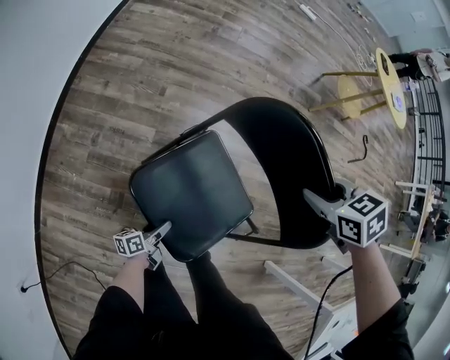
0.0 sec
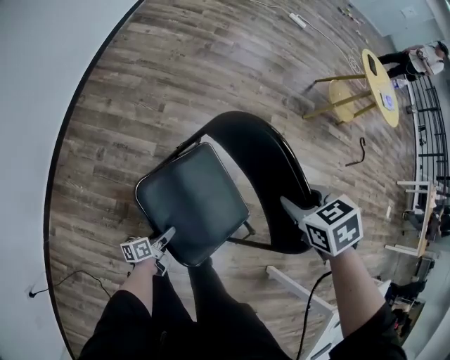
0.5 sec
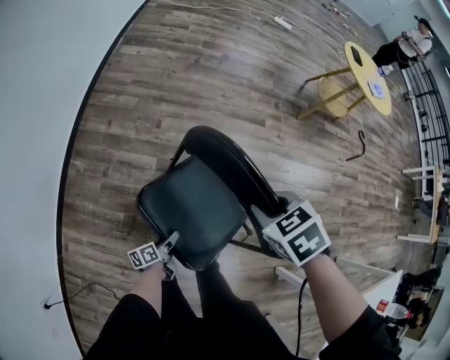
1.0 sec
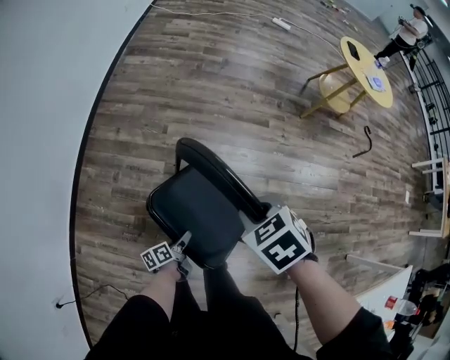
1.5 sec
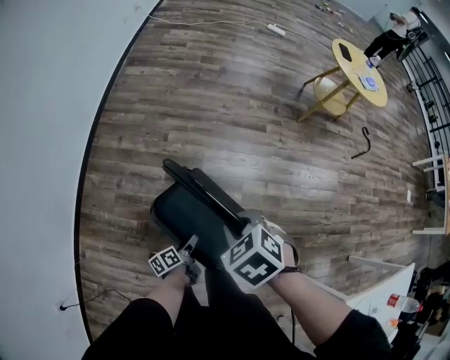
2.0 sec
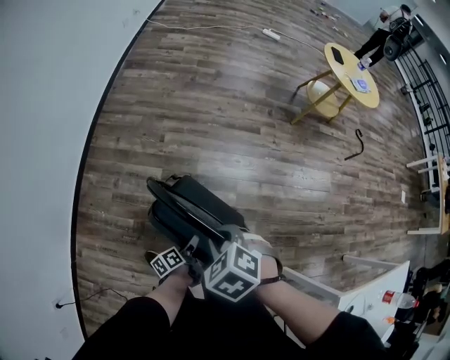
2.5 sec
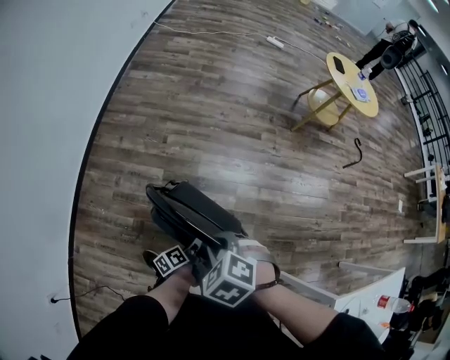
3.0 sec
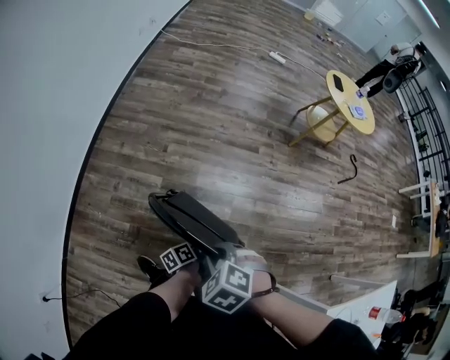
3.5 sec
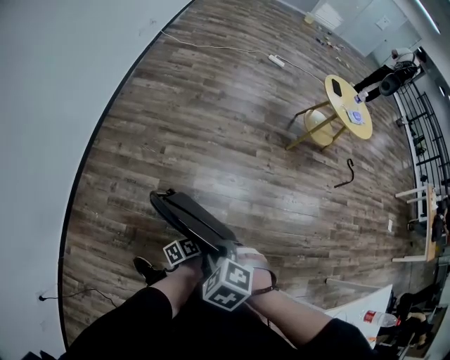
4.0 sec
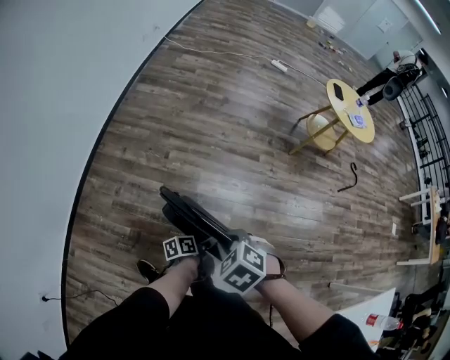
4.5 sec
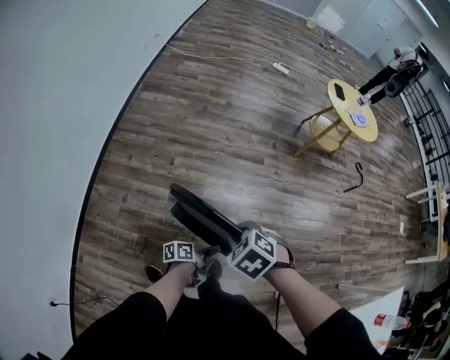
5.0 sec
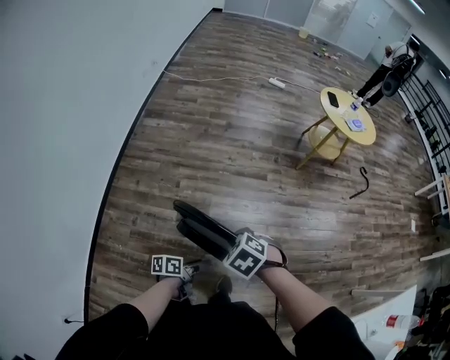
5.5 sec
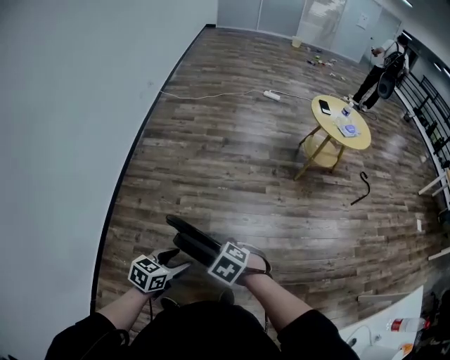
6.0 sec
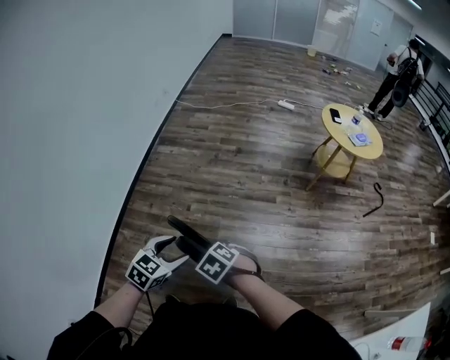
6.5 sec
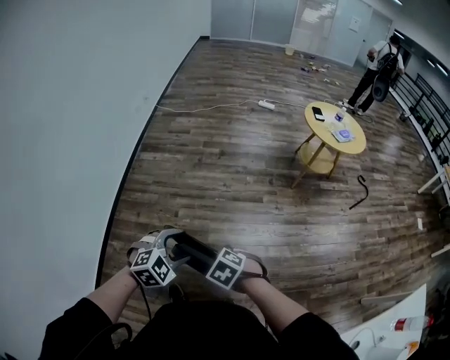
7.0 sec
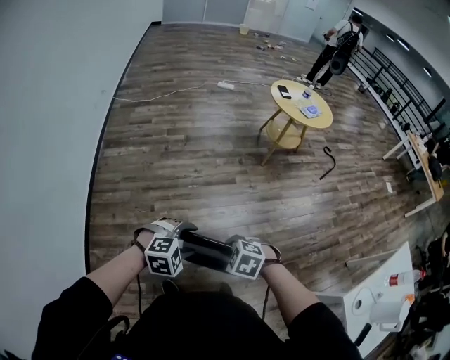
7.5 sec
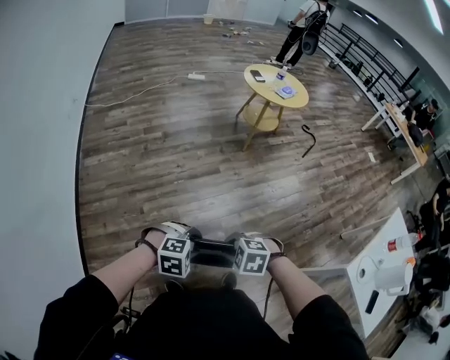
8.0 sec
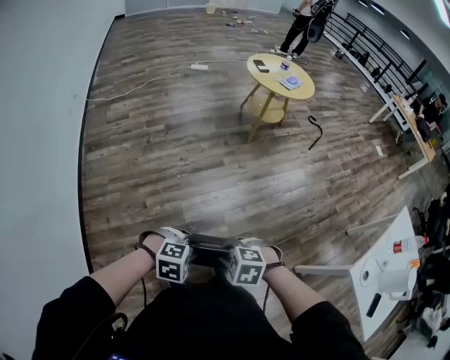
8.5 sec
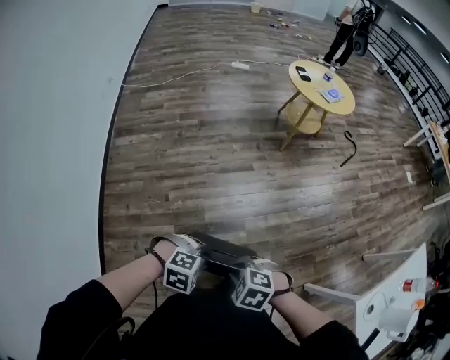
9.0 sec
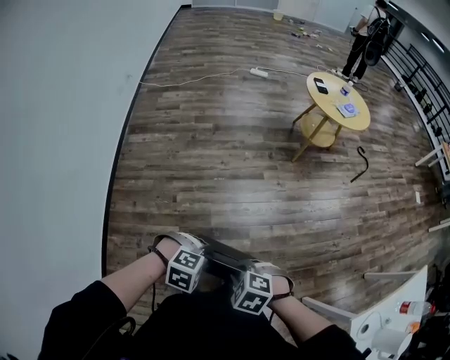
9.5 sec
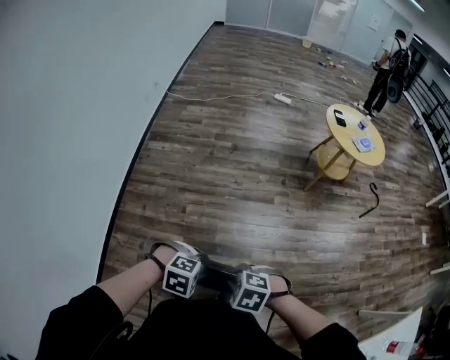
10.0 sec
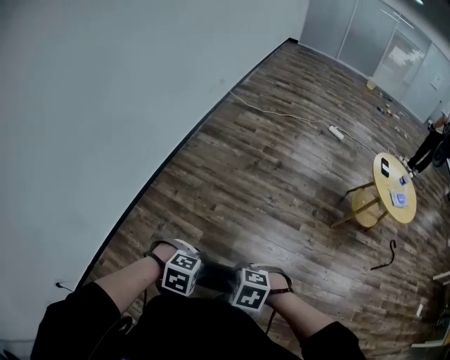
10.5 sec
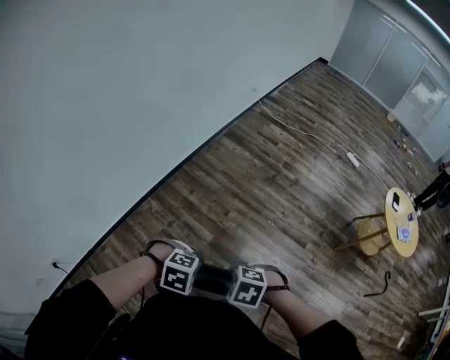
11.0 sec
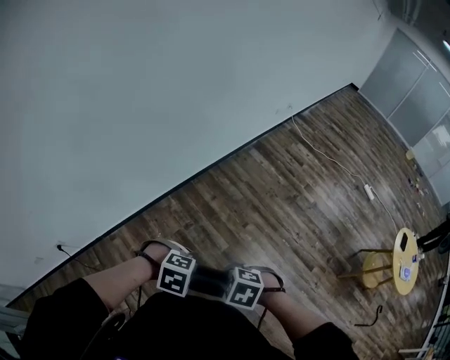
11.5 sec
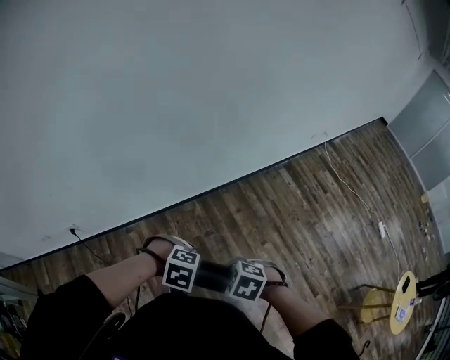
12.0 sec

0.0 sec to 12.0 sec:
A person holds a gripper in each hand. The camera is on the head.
0.0 sec to 2.0 sec: The left gripper moves upward and to the right, about 15 cm. The right gripper shifts approximately 20 cm backward, to the left and upward.
2.0 sec to 4.0 sec: The left gripper heads to the right and upward, covering some 15 cm. The right gripper heads backward, covering some 10 cm.
4.0 sec to 6.0 sec: The left gripper goes about 20 cm upward and to the left, rolls clockwise, seen from behind, by approximately 70 degrees, and opens; the right gripper goes roughly 10 cm forward.
6.0 sec to 8.0 sec: The left gripper rotates around the line of its fingers by about 80 degrees, clockwise from behind.
8.0 sec to 10.0 sec: There are only small adjustments of the grippers.
10.0 sec to 12.0 sec: The two grippers travel together, approximately 40 cm. The left gripper rotates around the line of its fingers by some 50 degrees, counterclockwise from behind, while the right gripper twists about 50 degrees counterclockwise, seen from behind.

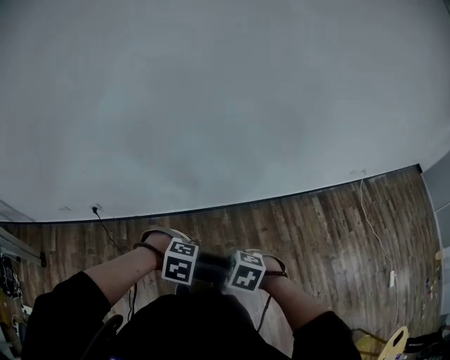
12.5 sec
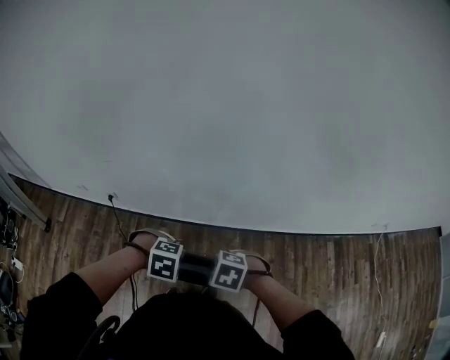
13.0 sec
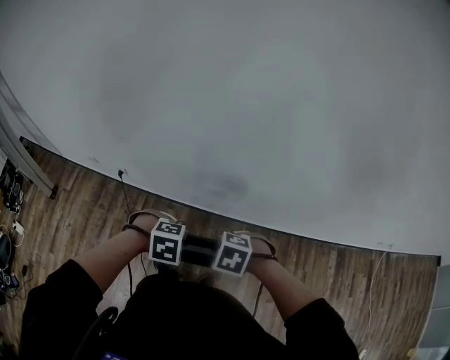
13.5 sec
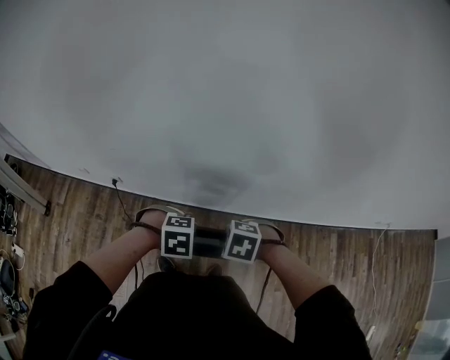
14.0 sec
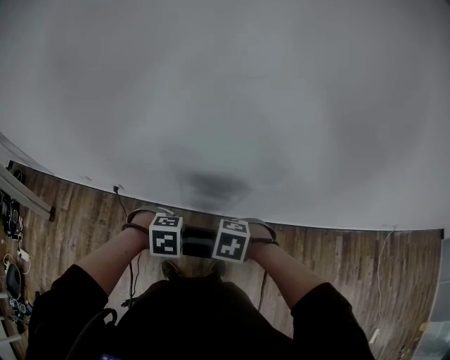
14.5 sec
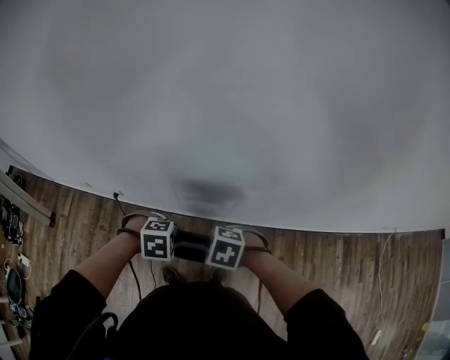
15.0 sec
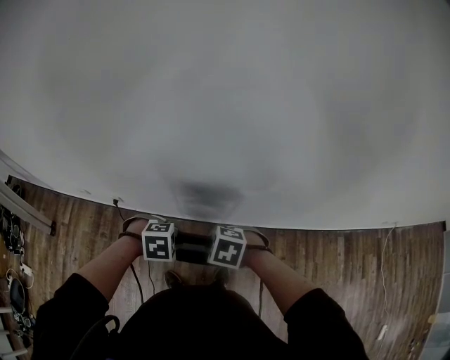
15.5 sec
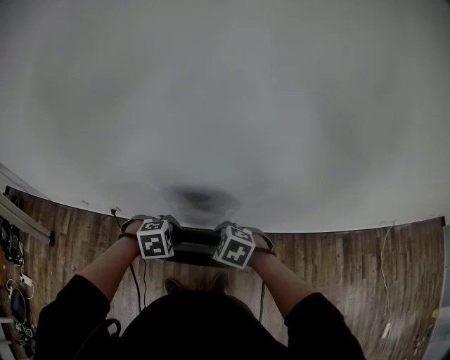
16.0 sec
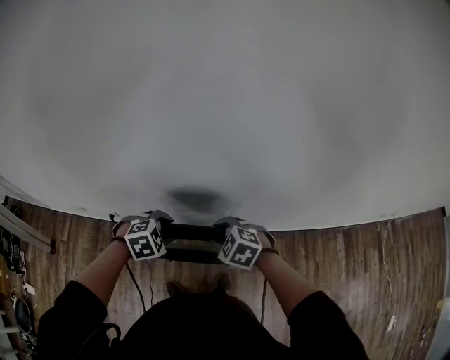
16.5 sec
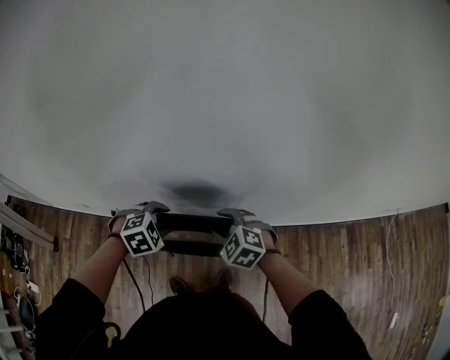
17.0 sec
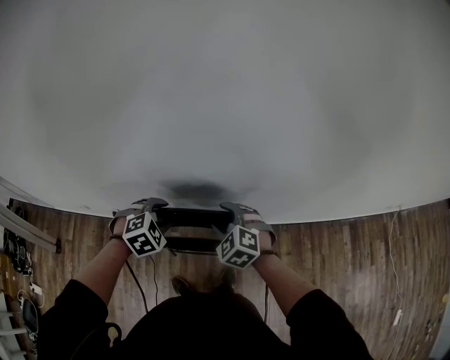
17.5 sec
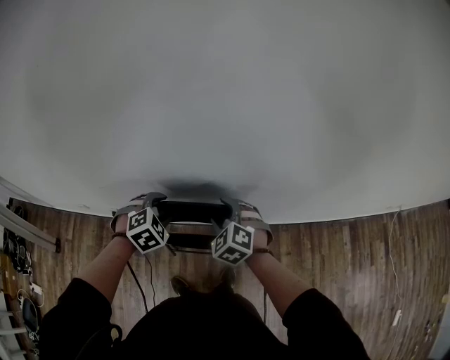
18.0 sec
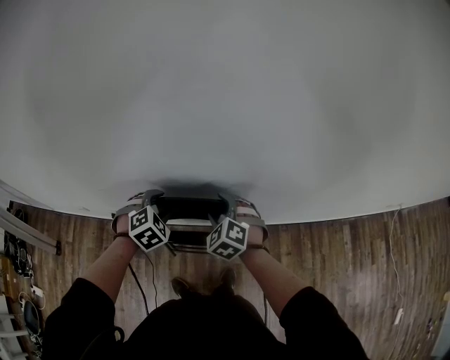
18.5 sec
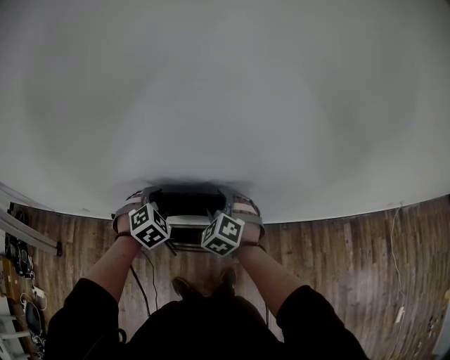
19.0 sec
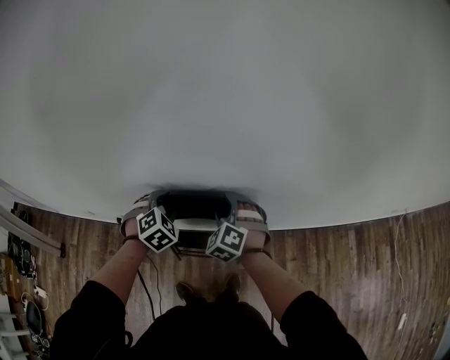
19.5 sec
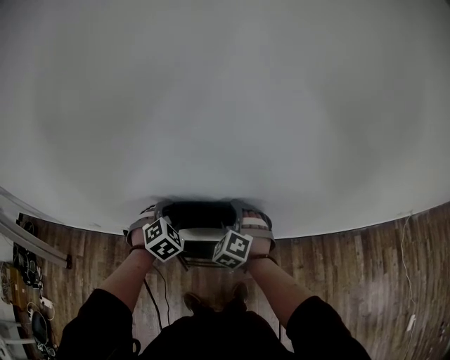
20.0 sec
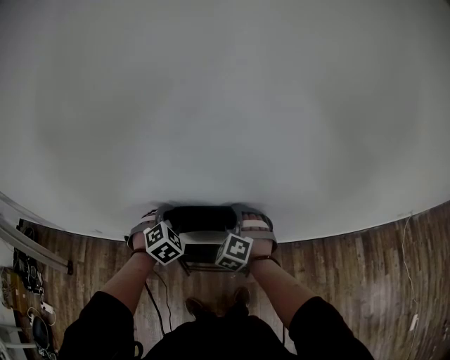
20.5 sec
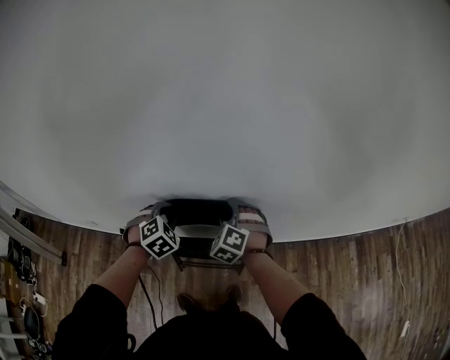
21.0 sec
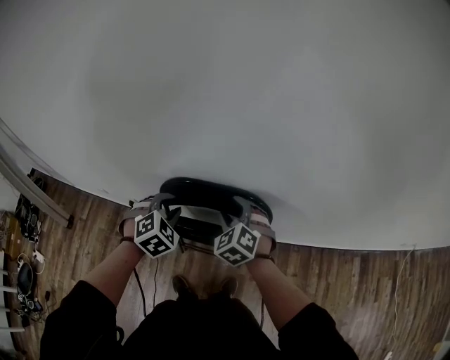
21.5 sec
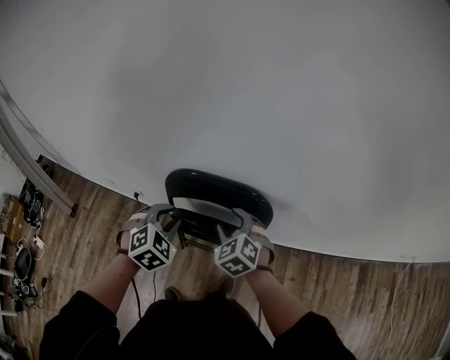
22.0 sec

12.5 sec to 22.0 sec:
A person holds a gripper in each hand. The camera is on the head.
12.5 sec to 14.5 sec: The left gripper changes place by roughly 20 cm, and swivels approximately 30 degrees, while the right gripper moves about 25 cm, and rotates about 30 degrees.
14.5 sec to 16.5 sec: The left gripper shifts by some 10 cm. Meanwhile the right gripper changes place by approximately 5 cm, and changes its angle by roughly 20 degrees.
16.5 sec to 18.0 sec: The two grippers go roughly 5 cm forward. The right gripper rotates approximately 30 degrees.
18.0 sec to 20.0 sec: The two grippers go about 5 cm forward.
20.0 sec to 22.0 sec: The right gripper shifts approximately 10 cm backward, and rotates about 30 degrees. Meanwhile the left gripper is displaced backward and upward by some 15 cm.

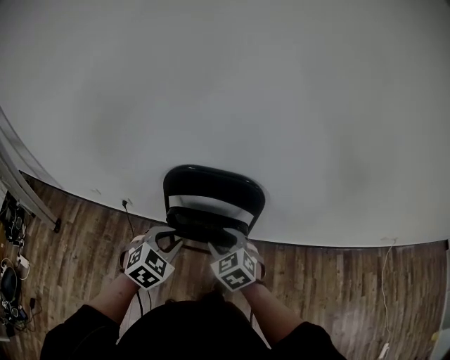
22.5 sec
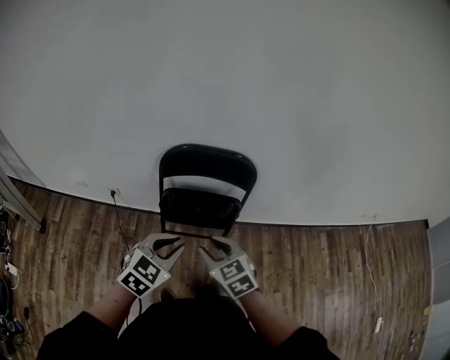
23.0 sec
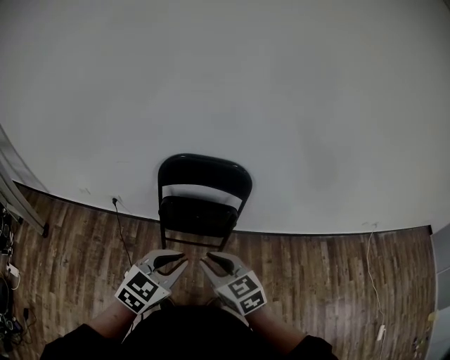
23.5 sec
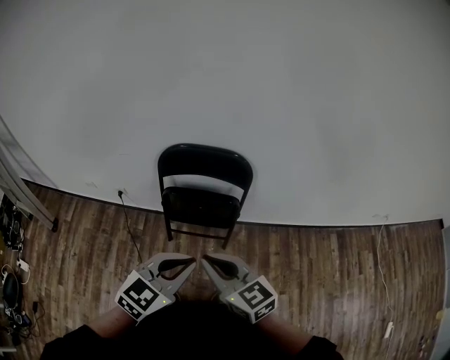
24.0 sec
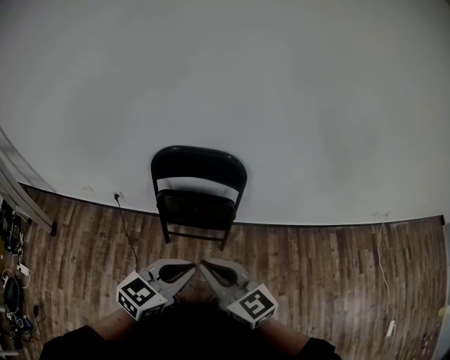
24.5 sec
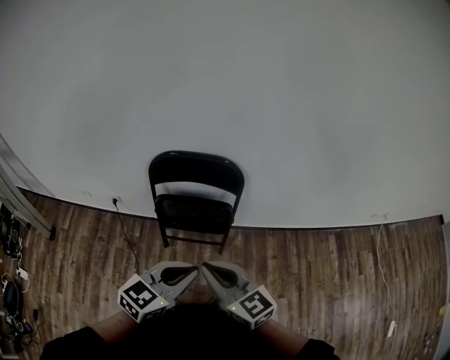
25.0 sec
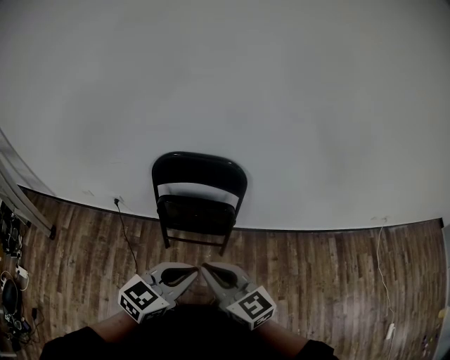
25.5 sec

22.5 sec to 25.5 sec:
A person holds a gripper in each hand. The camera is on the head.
22.5 sec to 24.0 sec: The left gripper moves backward, upward and to the right, approximately 20 cm, and swivels about 30 degrees. Meanwhile the right gripper is displaced backward and upward by roughly 20 cm, changes its angle by approximately 40 degrees, and closes its fingers.
24.0 sec to 25.5 sec: The grippers make only small movements.

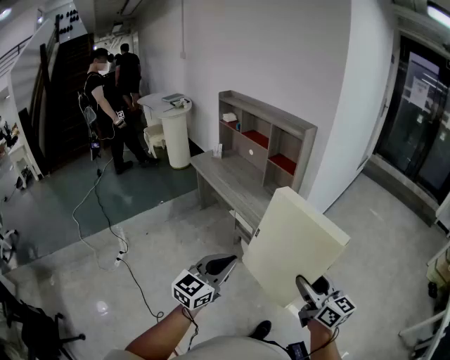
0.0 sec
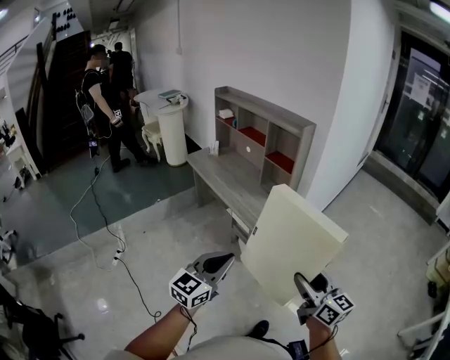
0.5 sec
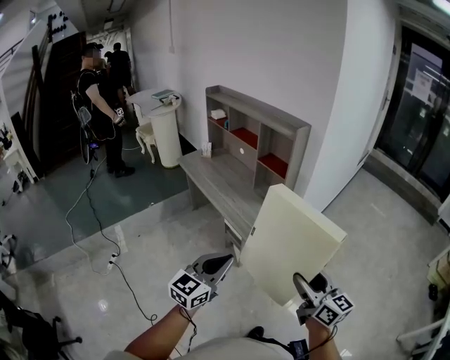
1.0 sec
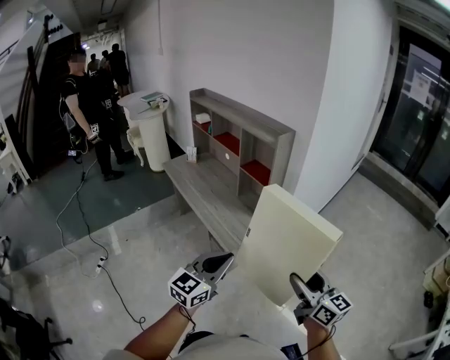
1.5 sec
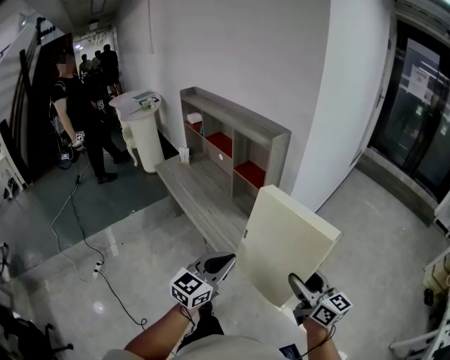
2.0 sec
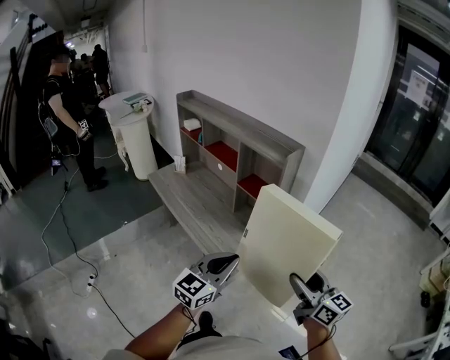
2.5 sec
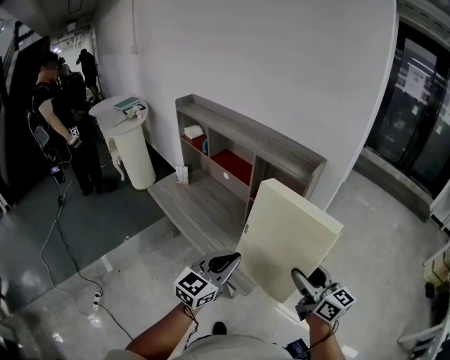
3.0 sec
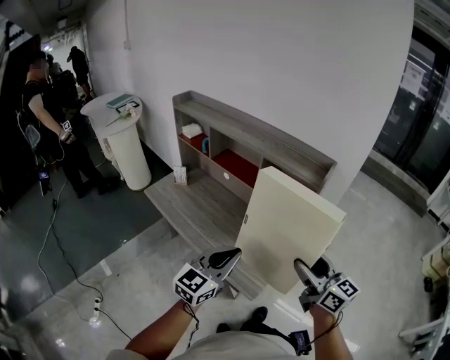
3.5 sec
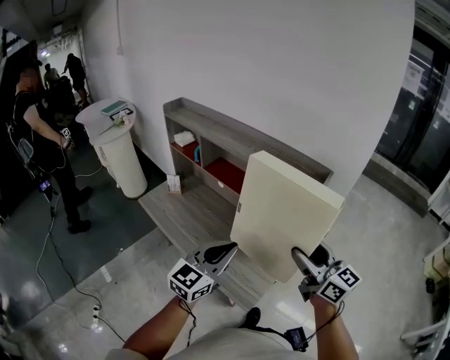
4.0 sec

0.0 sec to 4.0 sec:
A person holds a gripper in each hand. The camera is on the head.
0.0 sec to 2.0 sec: The grippers both shift forward and to the right by approximately 30 cm.
2.0 sec to 4.0 sec: Both grippers move forward and to the left, roughly 40 cm.
